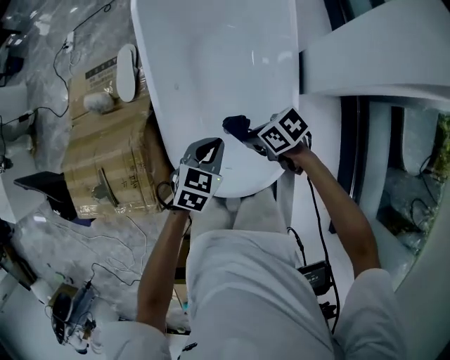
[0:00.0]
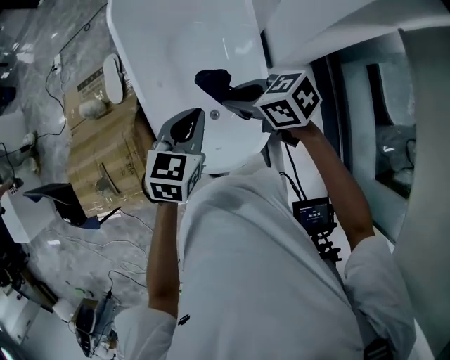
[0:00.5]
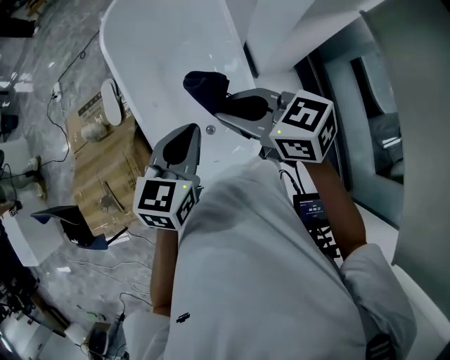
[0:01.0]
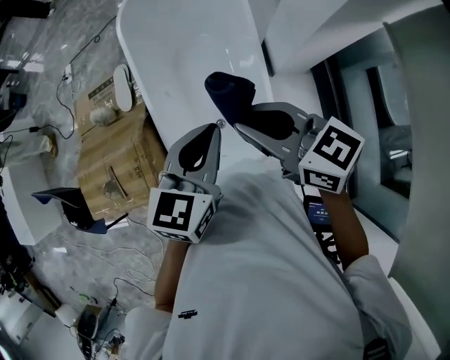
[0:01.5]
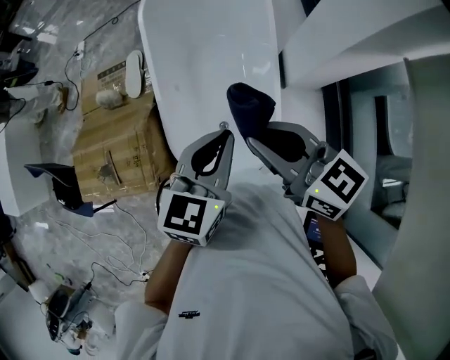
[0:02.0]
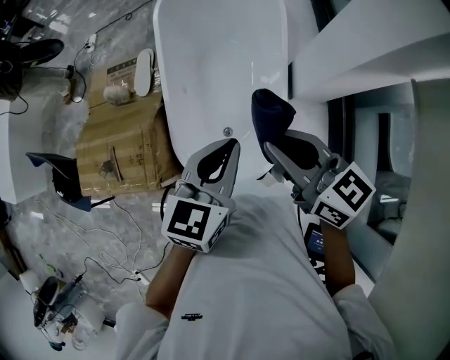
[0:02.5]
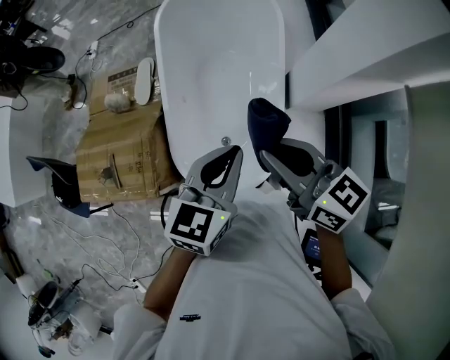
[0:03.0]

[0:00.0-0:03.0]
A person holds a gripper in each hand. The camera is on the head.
0:00.0 to 0:01.5: The left gripper is displaced upward by approximately 30 cm, and swivels approximately 20 degrees.

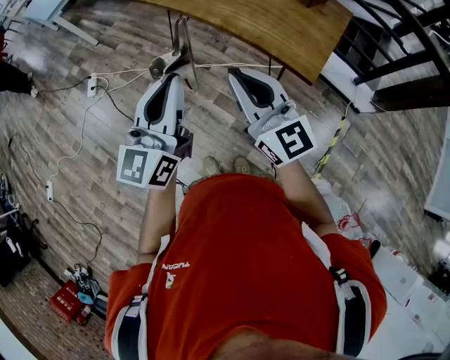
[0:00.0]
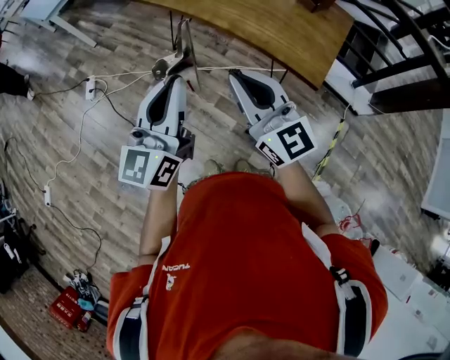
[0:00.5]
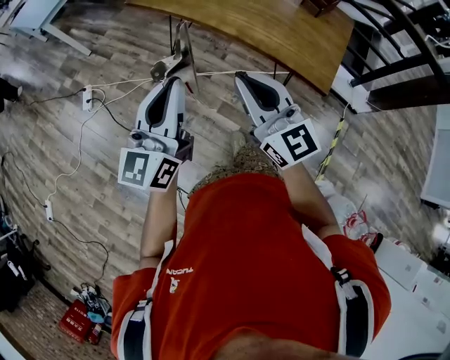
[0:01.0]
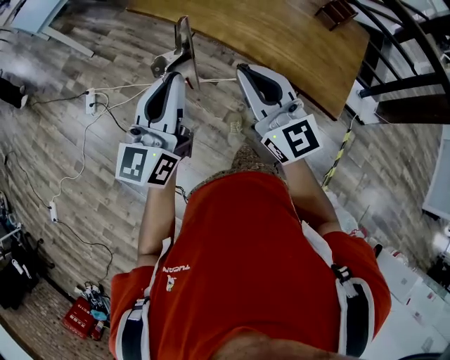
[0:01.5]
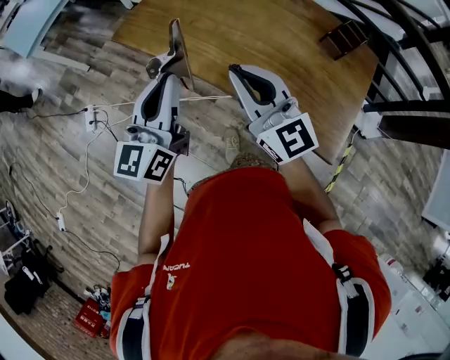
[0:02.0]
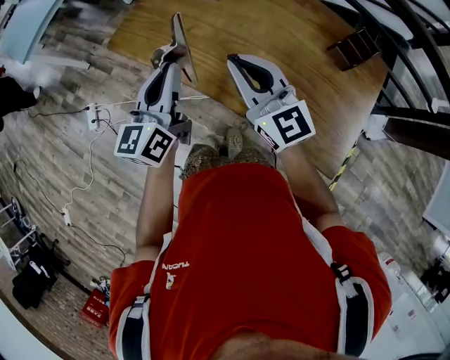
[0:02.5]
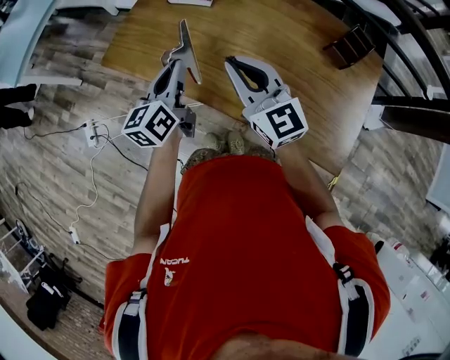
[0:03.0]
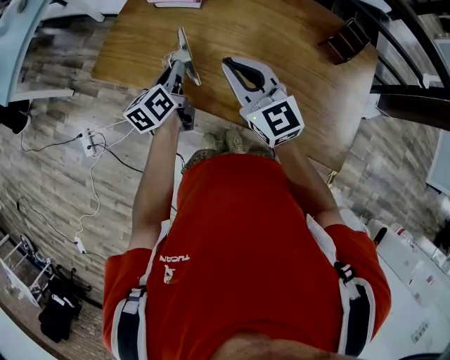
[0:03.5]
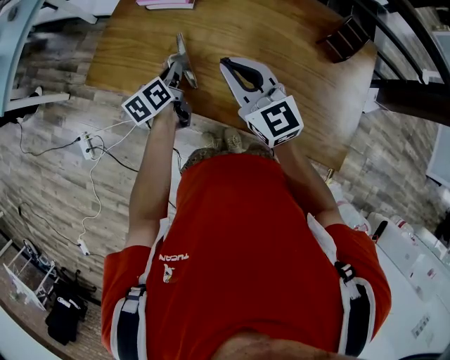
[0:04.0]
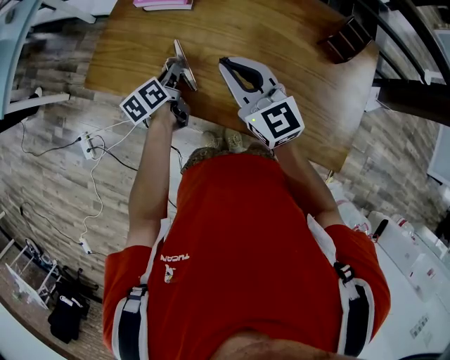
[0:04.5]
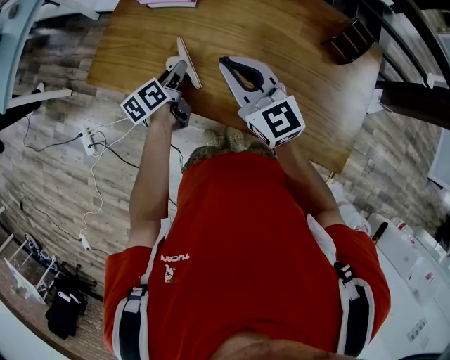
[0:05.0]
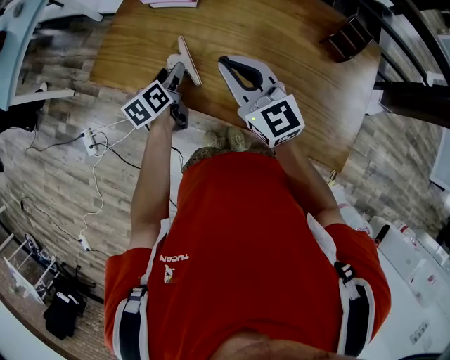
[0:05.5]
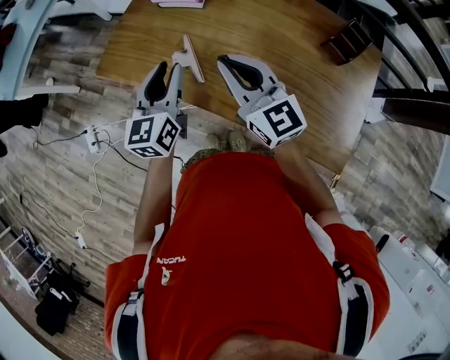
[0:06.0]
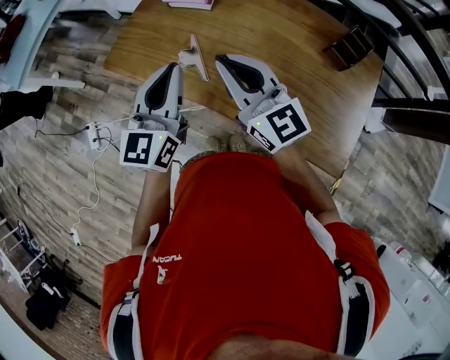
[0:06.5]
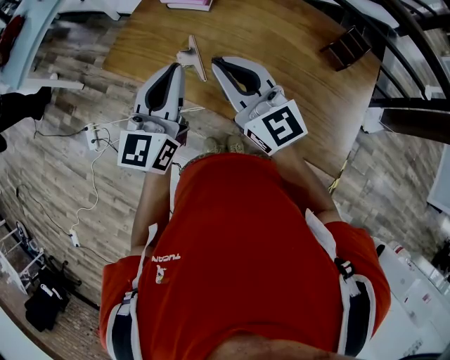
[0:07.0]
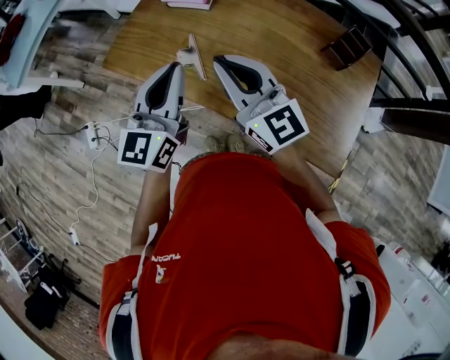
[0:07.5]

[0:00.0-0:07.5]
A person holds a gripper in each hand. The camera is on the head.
0:00.0 to 0:02.0: Both grippers travel together forward, roughly 35 cm.
0:02.0 to 0:04.0: The left gripper travels forward and downward by about 35 cm, and tilts its fingers approximately 40 degrees downward. The right gripper is displaced forward and downward by about 20 cm.
0:04.0 to 0:05.5: The left gripper opens up.
0:05.5 to 0:07.5: The left gripper shifts about 25 cm upward and backward, tilts its fingers approximately 30 degrees upward, and closes its fingers; the right gripper goes about 5 cm upward.

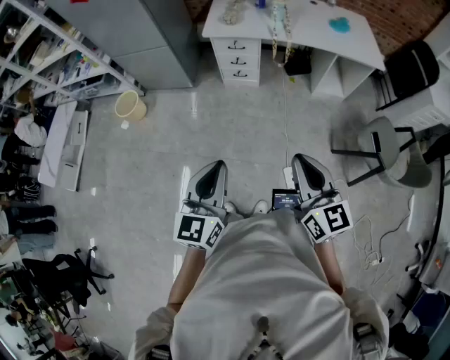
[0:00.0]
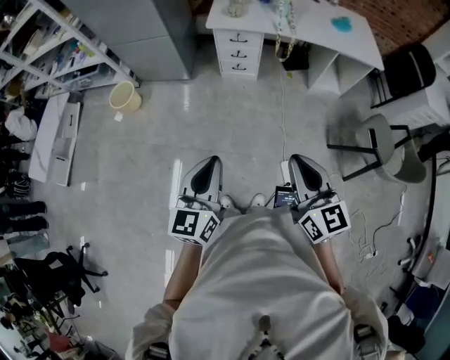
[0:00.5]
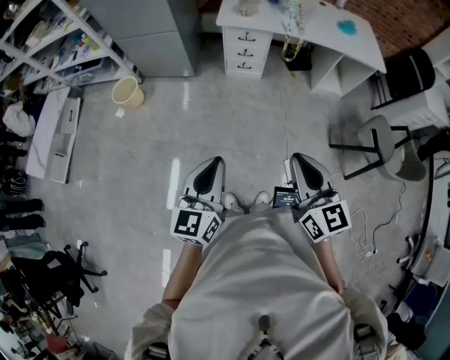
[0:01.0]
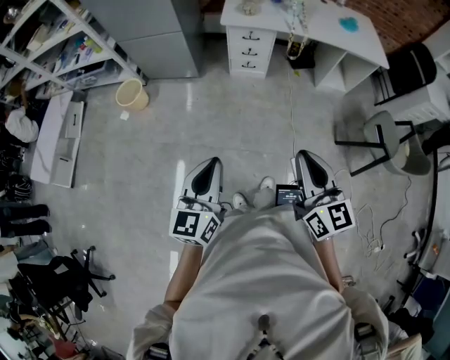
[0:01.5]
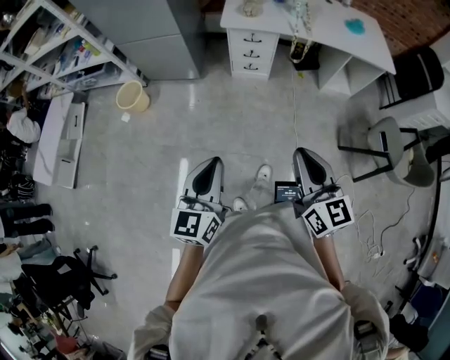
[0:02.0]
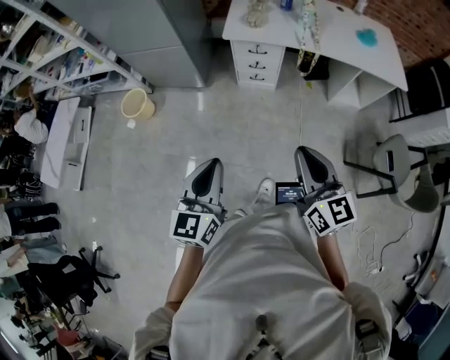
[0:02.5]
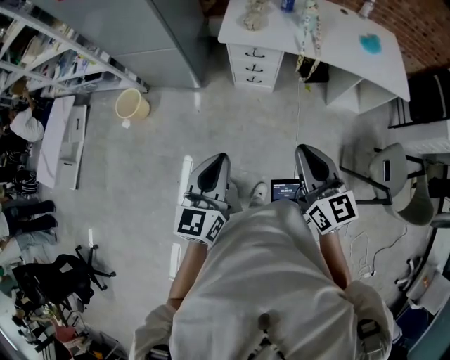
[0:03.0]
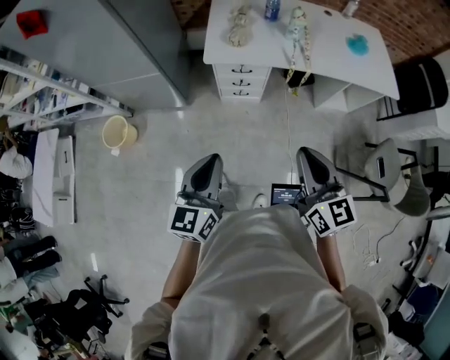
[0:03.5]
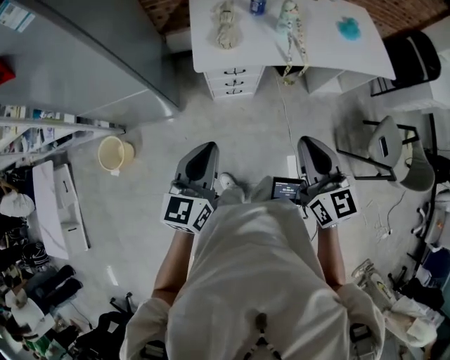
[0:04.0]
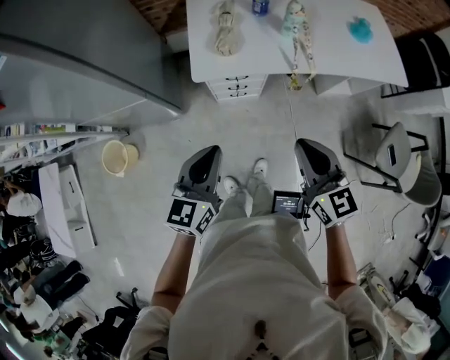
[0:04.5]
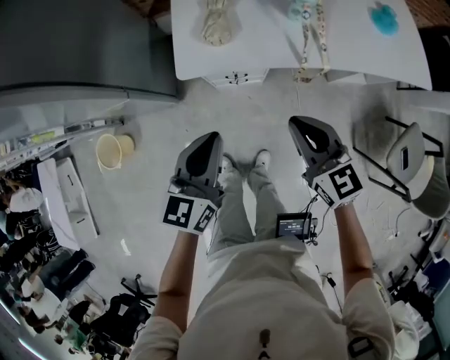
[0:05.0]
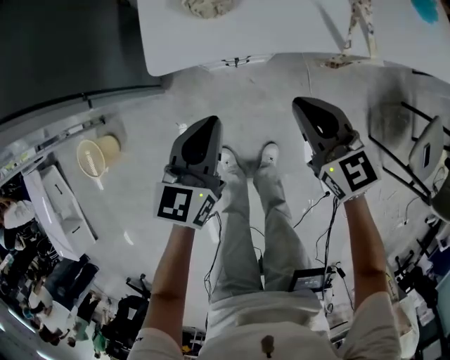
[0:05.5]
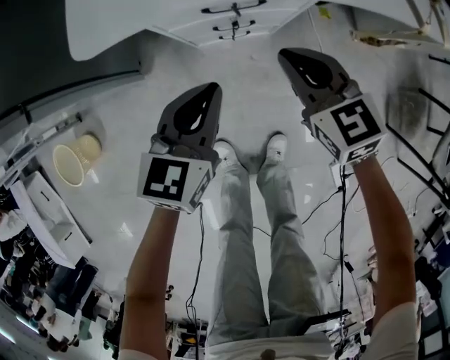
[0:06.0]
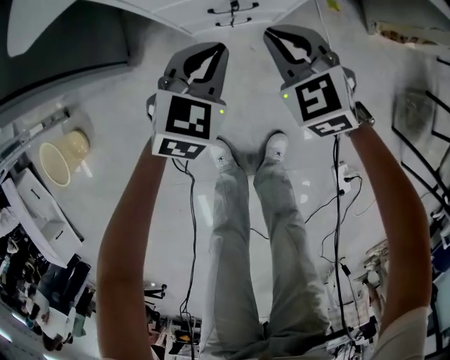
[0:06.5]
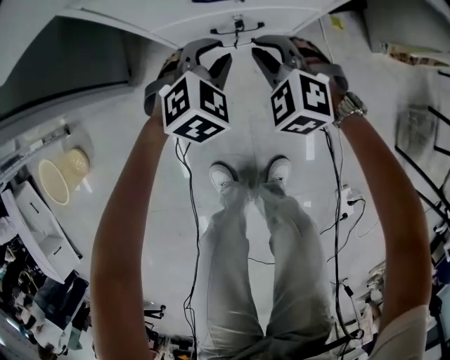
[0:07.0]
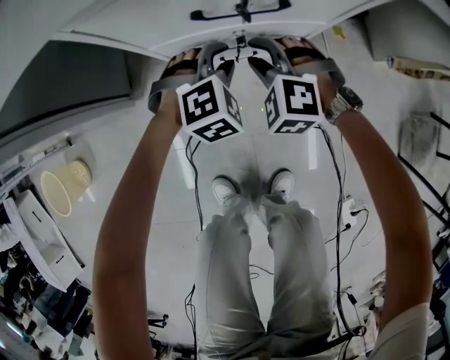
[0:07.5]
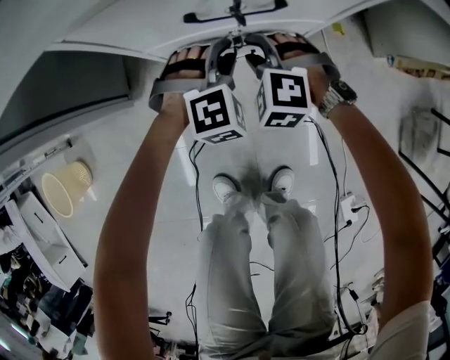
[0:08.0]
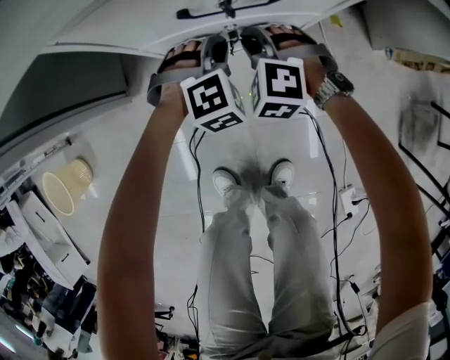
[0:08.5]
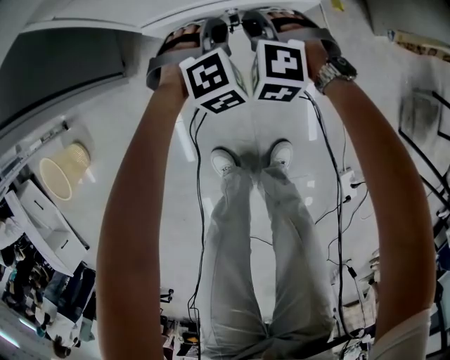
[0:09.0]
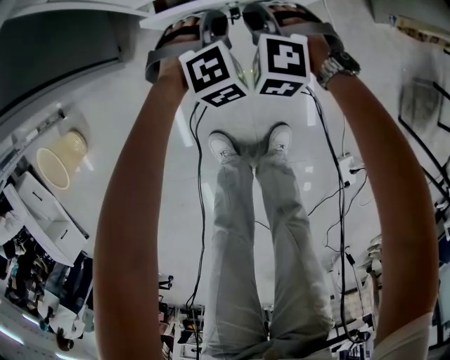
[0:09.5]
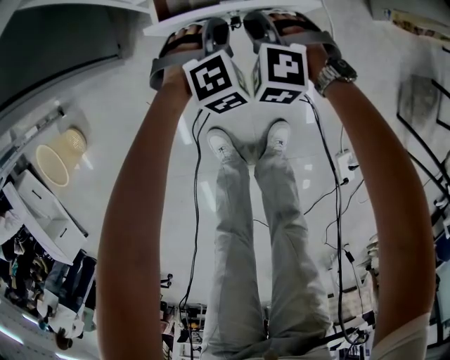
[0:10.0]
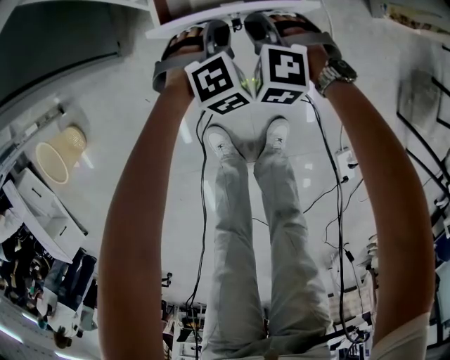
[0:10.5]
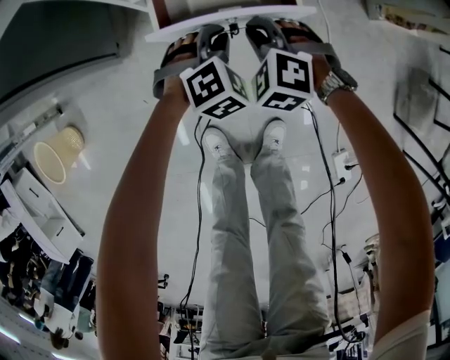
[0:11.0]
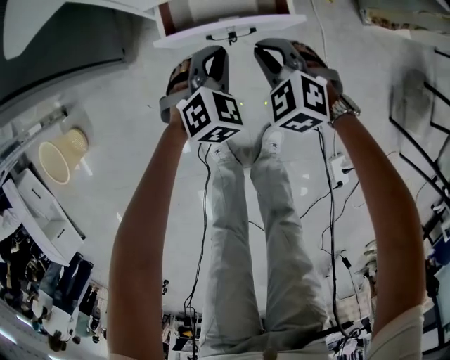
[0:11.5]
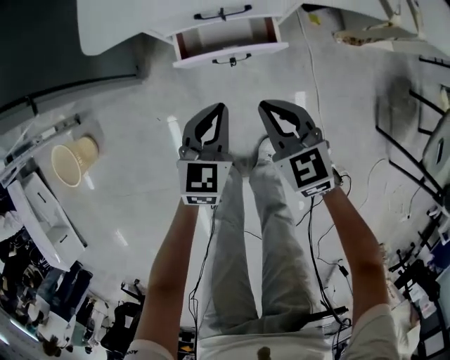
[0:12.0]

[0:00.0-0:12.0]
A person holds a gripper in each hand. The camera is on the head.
0:00.0 to 0:02.0: Both grippers move to the left, approximately 15 cm.
0:02.0 to 0:04.0: Both grippers travel together forward, some 40 cm.
0:04.0 to 0:06.0: The grippers both shift downward and forward by some 60 cm. The right gripper rotates some 30 degrees; the left gripper turns by about 20 degrees.
0:06.0 to 0:08.0: The left gripper heads downward and forward, covering roughly 25 cm, rotates around the line of its fingers by about 70 degrees, clockwise from behind, and opens, while the right gripper travels downward by approximately 25 cm, twists roughly 60 degrees counterclockwise, seen from behind, and opens up.
0:08.0 to 0:10.0: The two grippers go some 5 cm backward. The right gripper closes up. Meanwhile the left gripper closes its fingers.
0:10.0 to 0:12.0: Both grippers travel together upward and backward, approximately 25 cm. The right gripper rotates around the line of its fingers by about 50 degrees, clockwise from behind. Meanwhile the left gripper twists about 60 degrees counterclockwise, seen from behind.

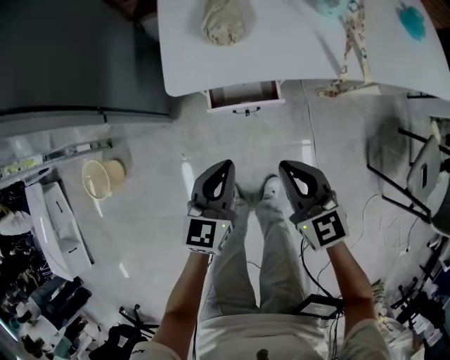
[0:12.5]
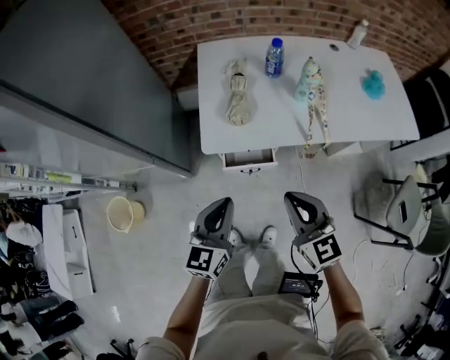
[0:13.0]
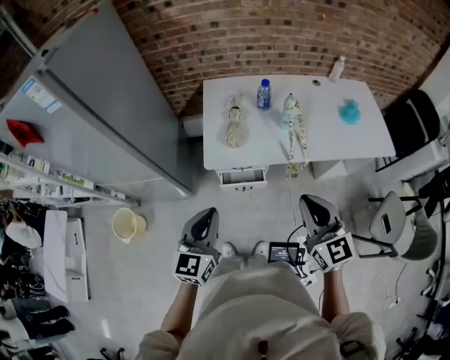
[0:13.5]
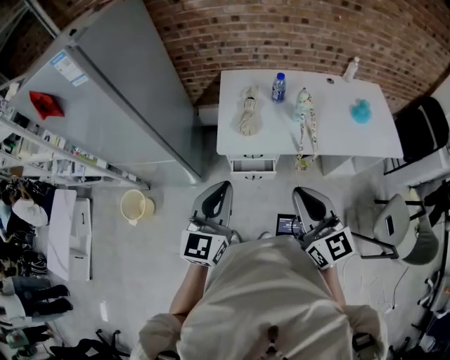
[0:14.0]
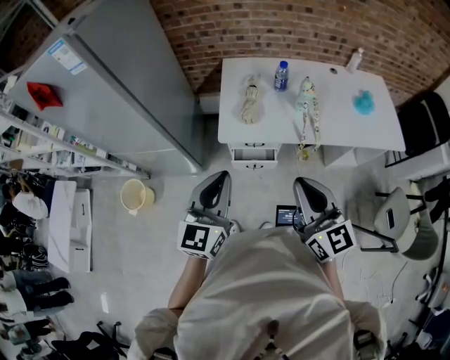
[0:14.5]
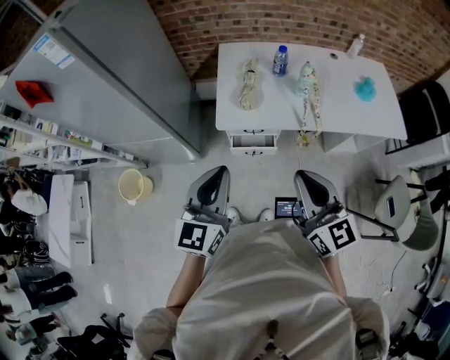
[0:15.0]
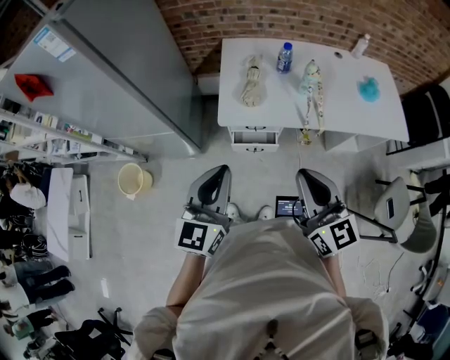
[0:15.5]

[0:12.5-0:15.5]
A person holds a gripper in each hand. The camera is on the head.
0:12.5 to 0:14.0: The grippers both shift upward by approximately 40 cm. The left gripper changes its angle by about 20 degrees. The right gripper turns by about 20 degrees.
0:14.0 to 0:15.5: There are only small adjustments of the grippers.
